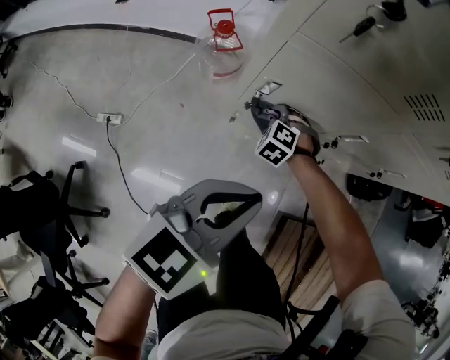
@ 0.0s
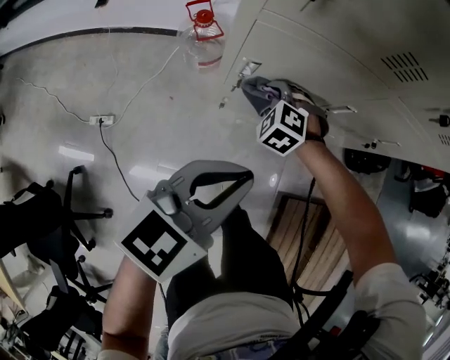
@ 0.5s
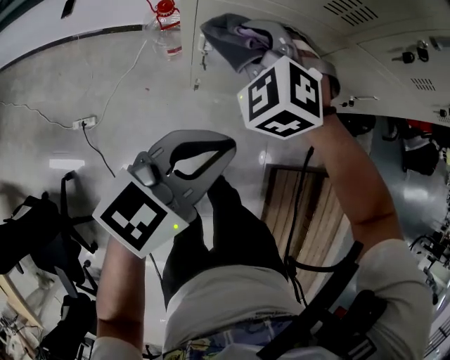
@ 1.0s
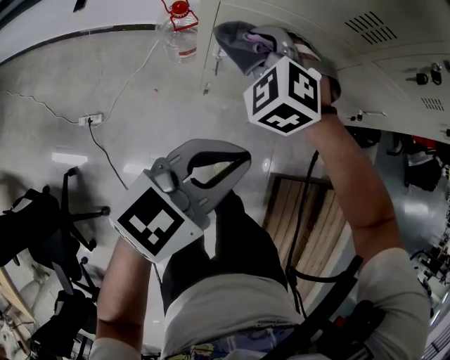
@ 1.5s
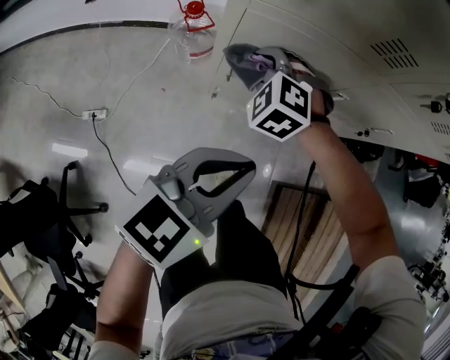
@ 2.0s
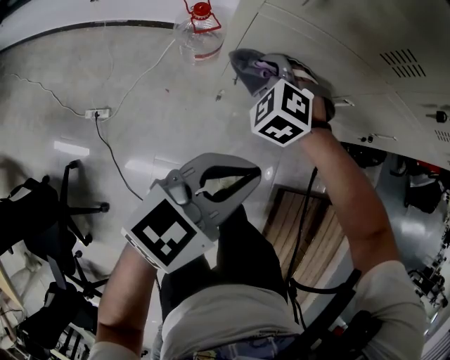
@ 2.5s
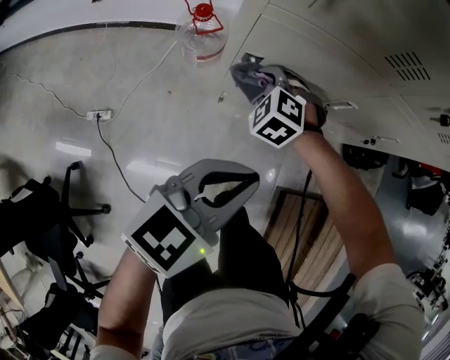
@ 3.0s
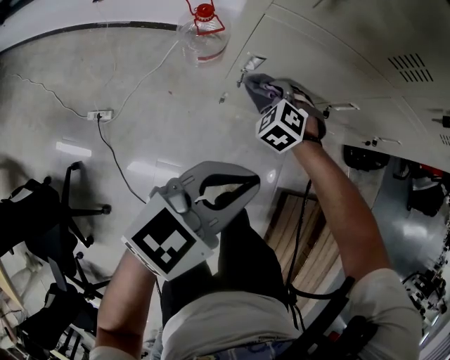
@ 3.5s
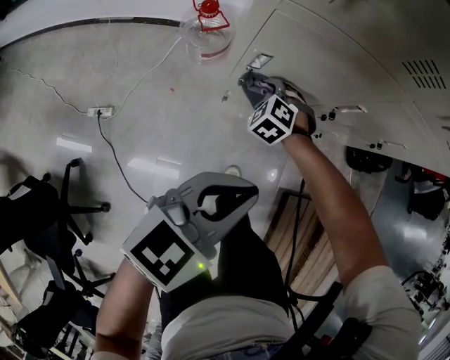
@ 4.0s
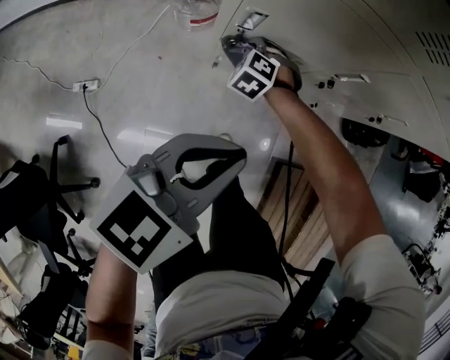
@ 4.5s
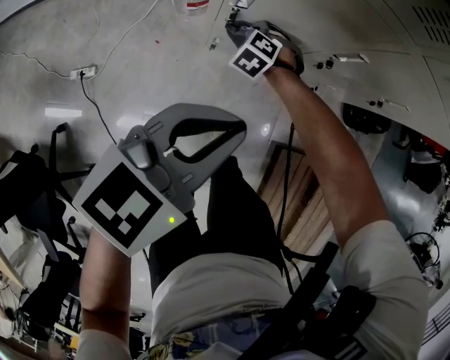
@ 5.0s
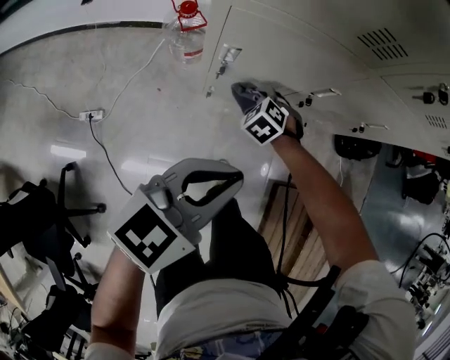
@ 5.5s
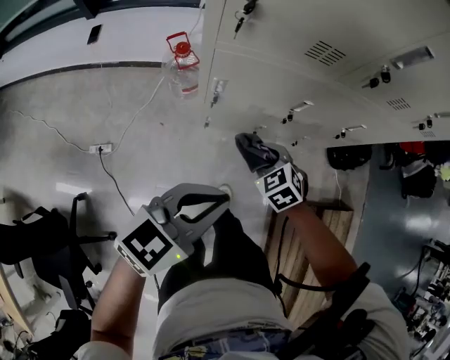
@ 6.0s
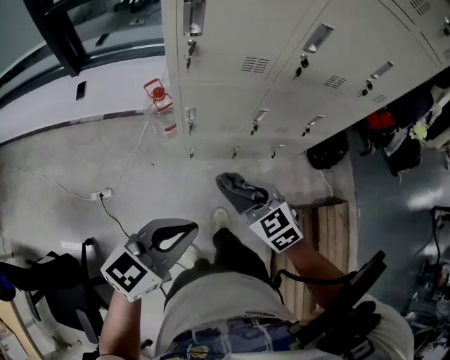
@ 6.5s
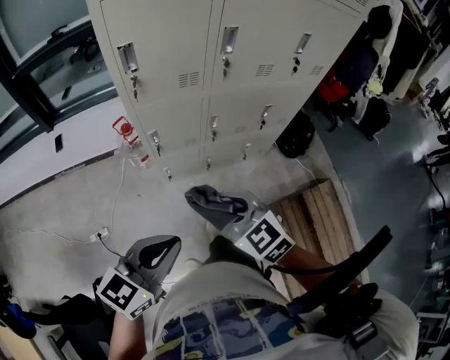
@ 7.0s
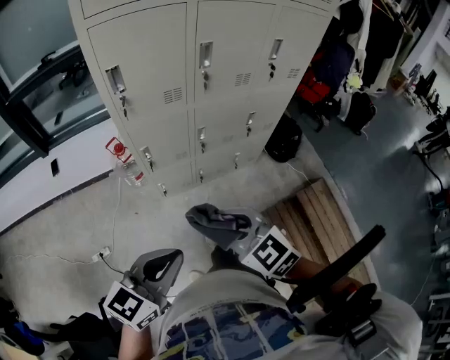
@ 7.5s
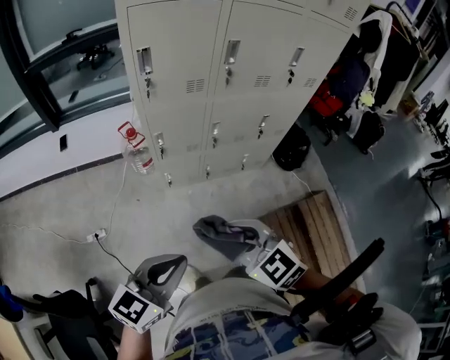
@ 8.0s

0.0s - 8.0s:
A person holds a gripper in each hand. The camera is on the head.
0.0s - 2.0s: The right gripper travels upward by about 20 cm.
2.0s - 4.0s: The right gripper goes about 15 cm downward.
4.0s - 6.0s: The left gripper travels upward by about 10 cm, while the right gripper travels upward, to the right and backward by about 25 cm, and changes its angle by some 30 degrees.
6.0s - 8.0s: The left gripper moves backward and upward, about 25 cm, while the right gripper heads backward and upward, covering some 40 cm, and changes its angle by about 30 degrees.

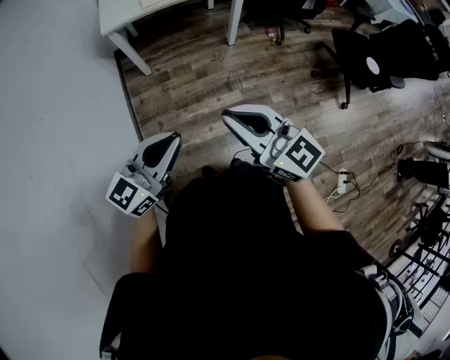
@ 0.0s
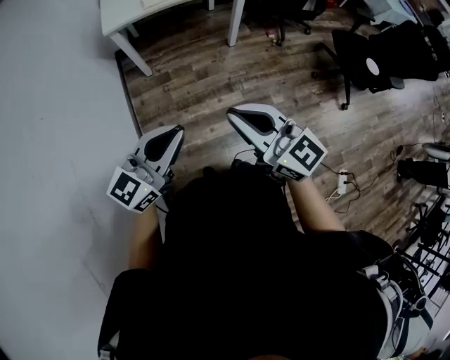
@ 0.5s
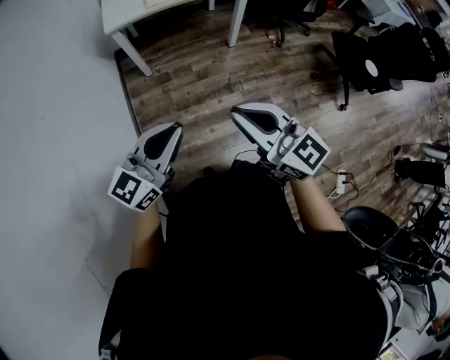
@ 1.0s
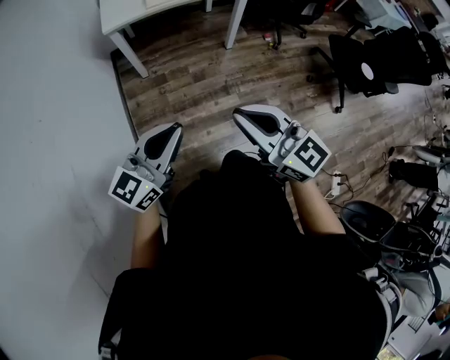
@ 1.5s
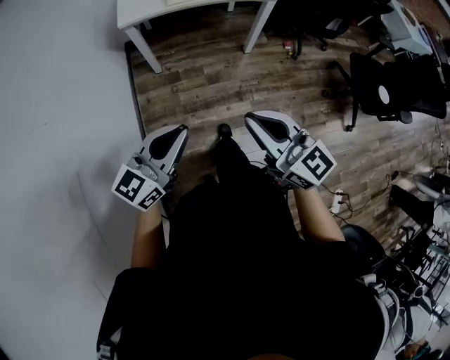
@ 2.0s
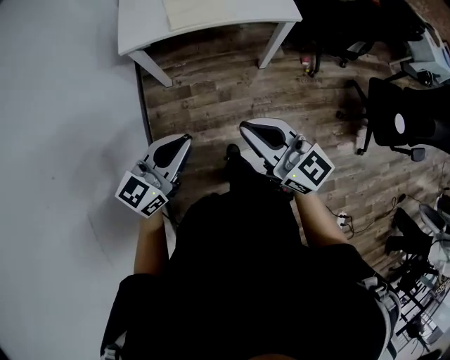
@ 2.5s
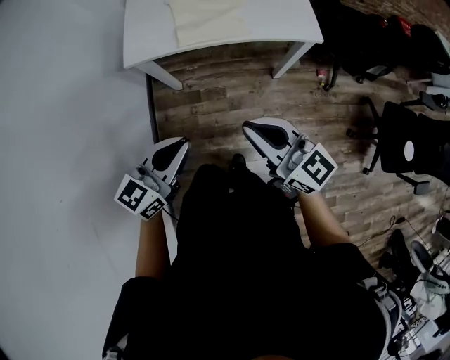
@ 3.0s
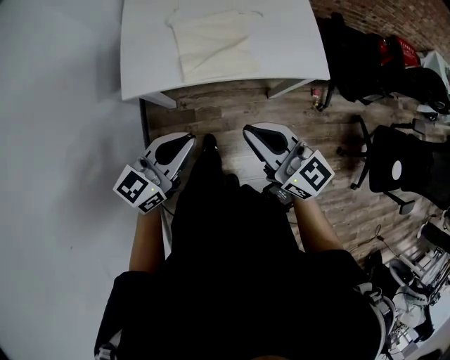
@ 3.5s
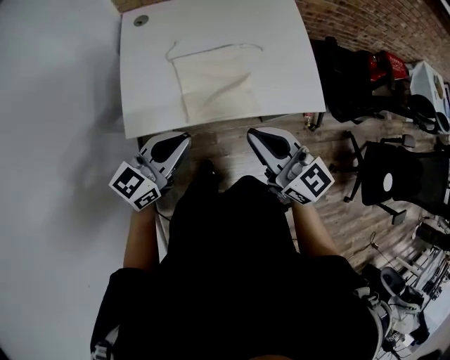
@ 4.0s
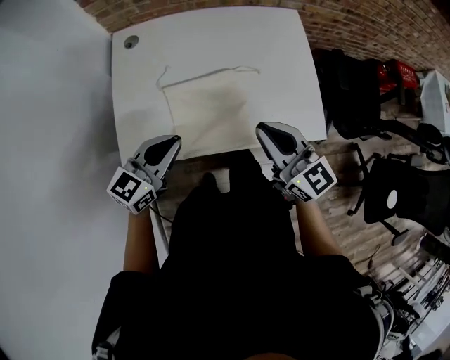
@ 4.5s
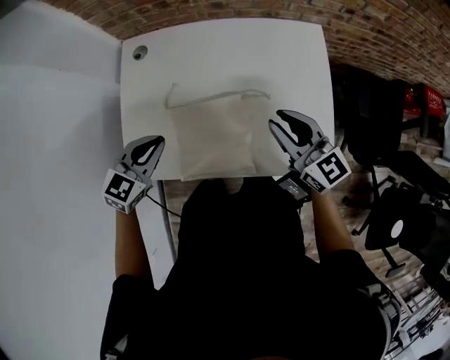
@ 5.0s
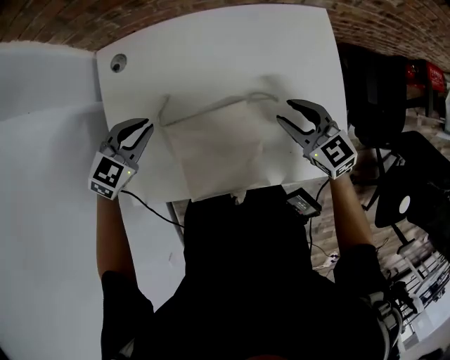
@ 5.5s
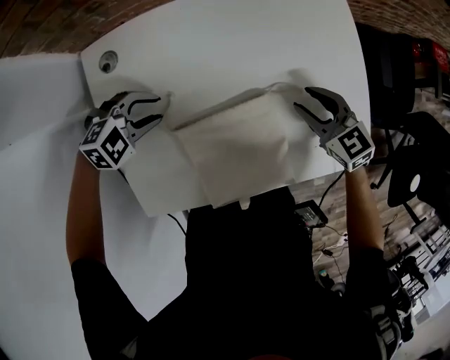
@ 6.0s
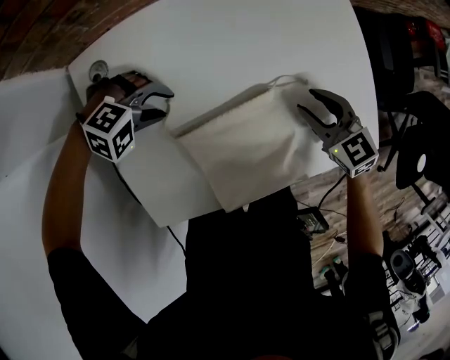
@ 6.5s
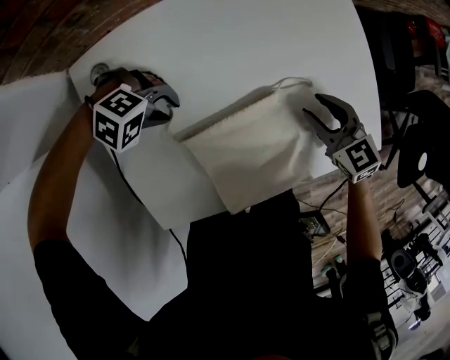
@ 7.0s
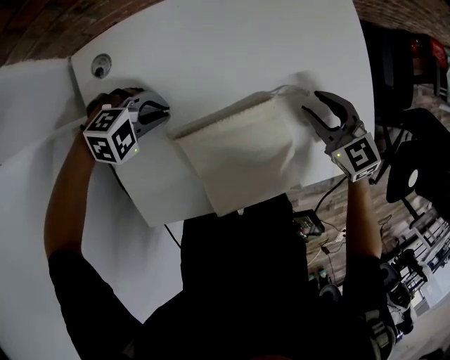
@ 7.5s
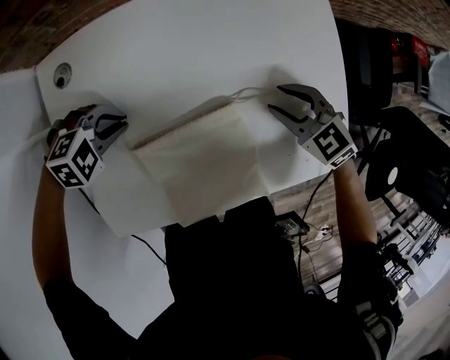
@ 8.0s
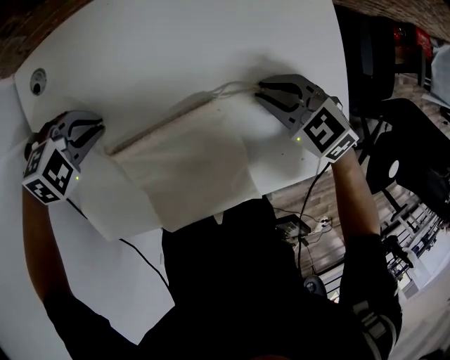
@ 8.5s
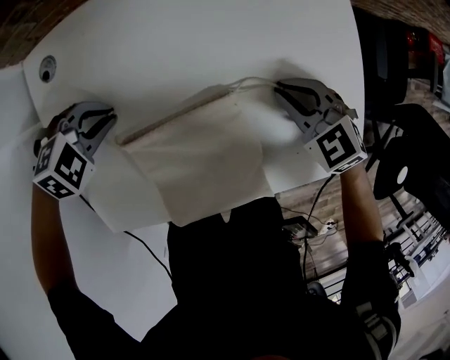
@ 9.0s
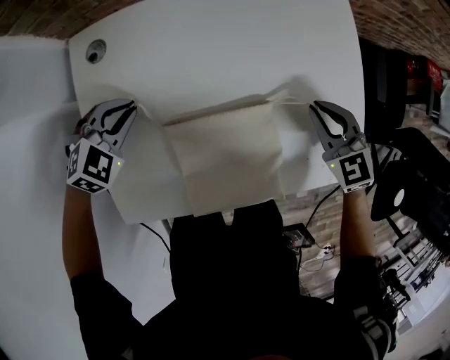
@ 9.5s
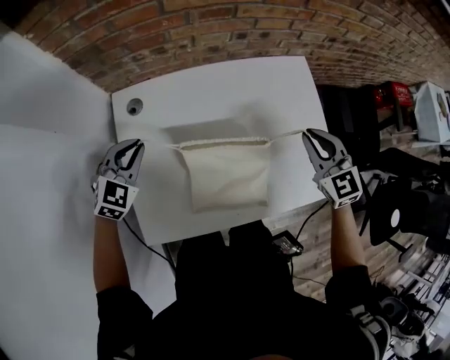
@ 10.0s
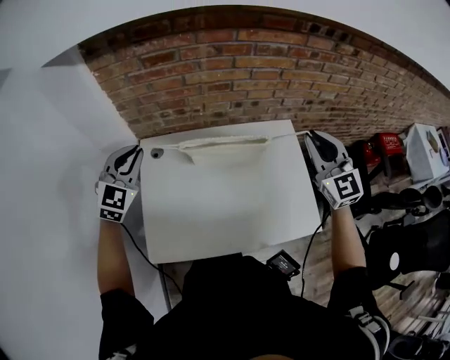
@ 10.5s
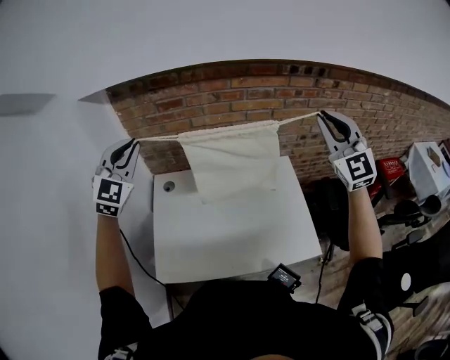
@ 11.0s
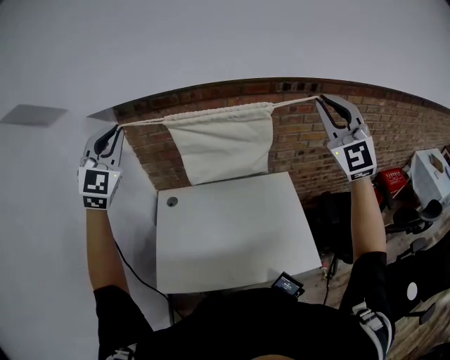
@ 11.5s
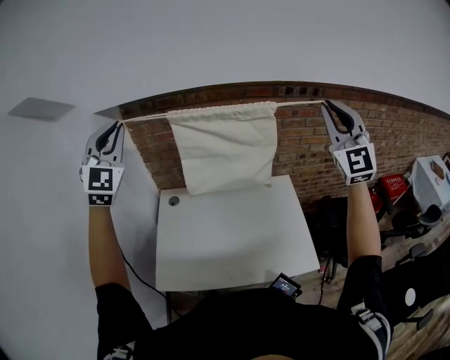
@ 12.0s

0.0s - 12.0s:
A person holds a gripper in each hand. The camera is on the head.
0.0s - 2.0s: The two grippers go approximately 10 cm forward.
2.0s - 4.0s: Both grippers are carried forward, roughly 60 cm.
4.0s - 6.0s: The right gripper shifts by about 40 cm, tips its fingers downward by roughly 30 degrees, and opens up; the left gripper ends up some 40 cm from where it was, angles its fingers downward, by roughly 50 degrees, and opens its fingers.
6.0s - 8.0s: The left gripper closes up.
8.0s - 10.0s: Both grippers move upward, roughly 20 cm. The left gripper changes its angle by roughly 50 degrees. Meanwhile the right gripper rotates roughly 30 degrees, and closes its fingers.
10.0s - 12.0s: Both grippers travel together upward, some 50 cm. The left gripper tilts its fingers some 50 degrees upward, while the right gripper tips its fingers upward by some 50 degrees.

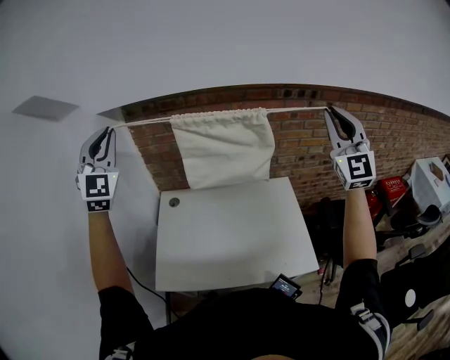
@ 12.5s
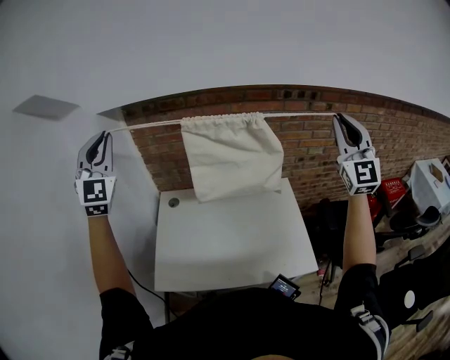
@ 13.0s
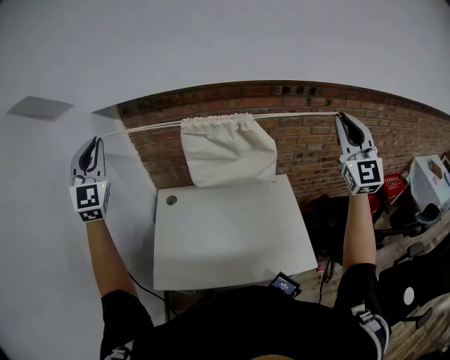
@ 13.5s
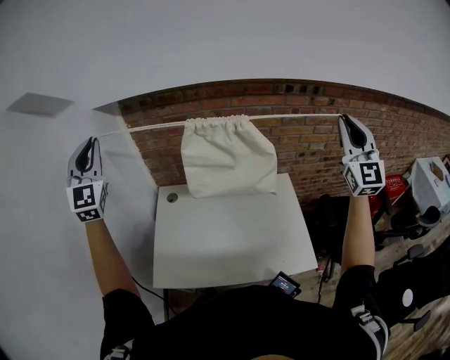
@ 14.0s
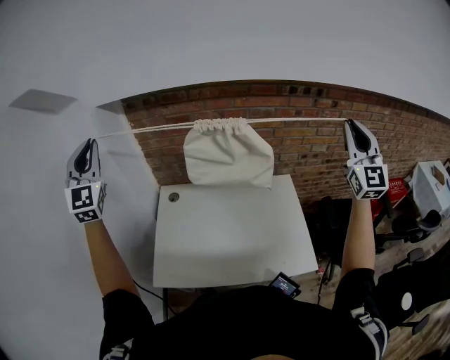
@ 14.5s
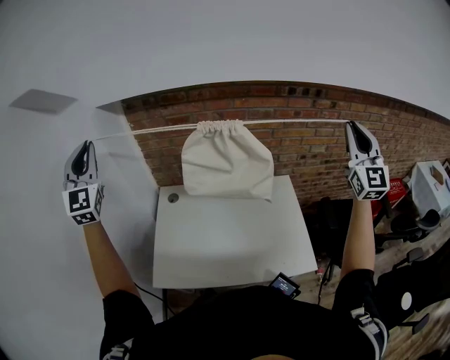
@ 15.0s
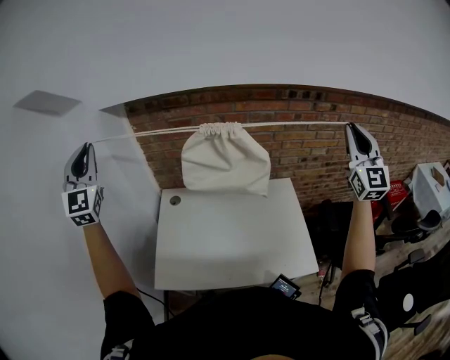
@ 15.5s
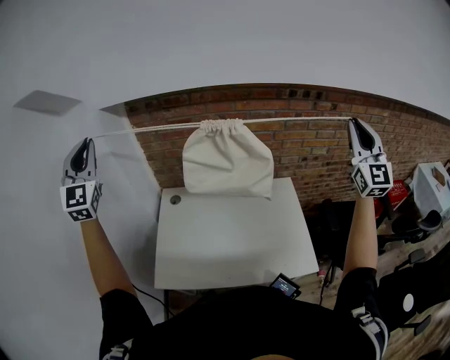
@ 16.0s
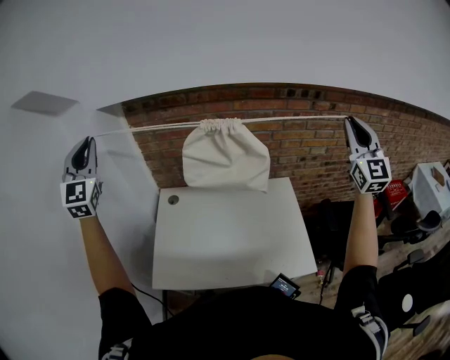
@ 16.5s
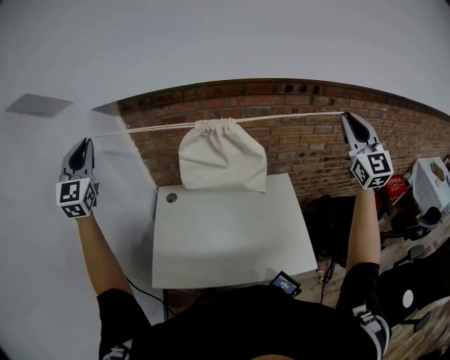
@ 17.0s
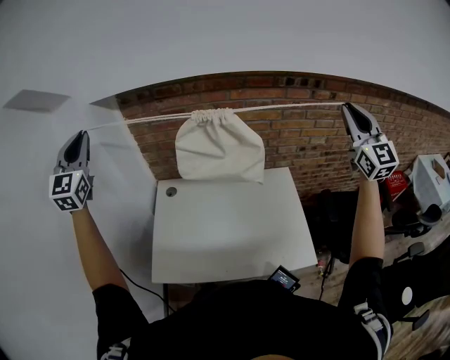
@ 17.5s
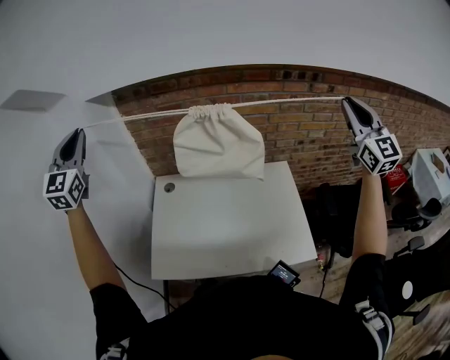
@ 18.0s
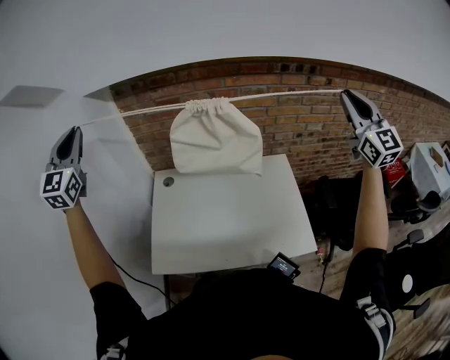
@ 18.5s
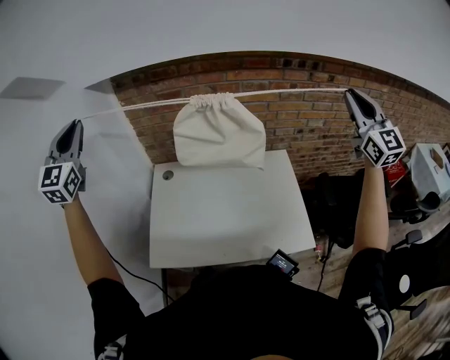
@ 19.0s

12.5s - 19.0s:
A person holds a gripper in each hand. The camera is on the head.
12.5s - 14.5s: The right gripper moves to the right, roughly 5 cm. The left gripper travels to the left by about 5 cm.
14.5s - 19.0s: The grippers make only small movements.
